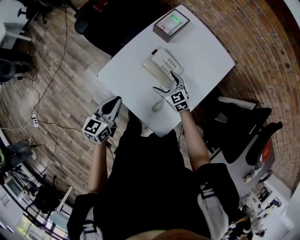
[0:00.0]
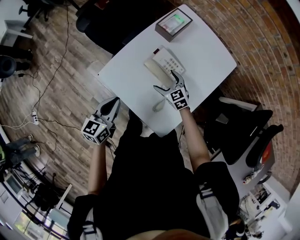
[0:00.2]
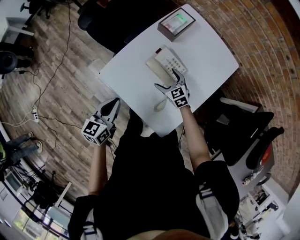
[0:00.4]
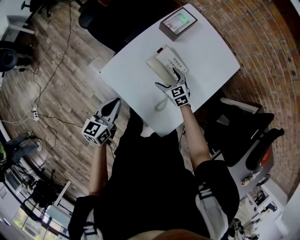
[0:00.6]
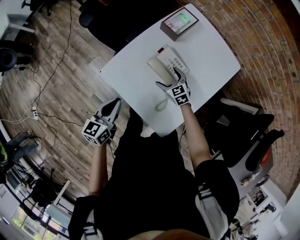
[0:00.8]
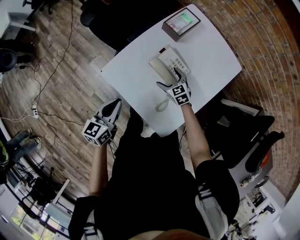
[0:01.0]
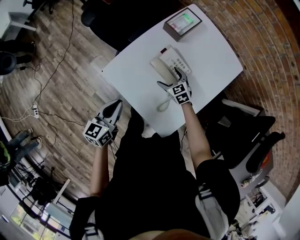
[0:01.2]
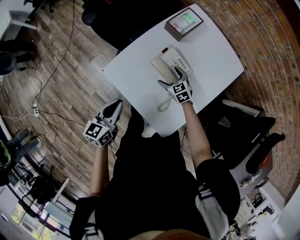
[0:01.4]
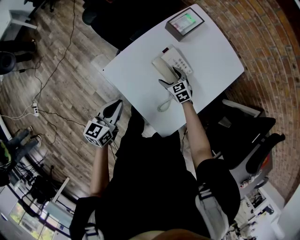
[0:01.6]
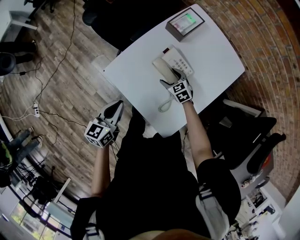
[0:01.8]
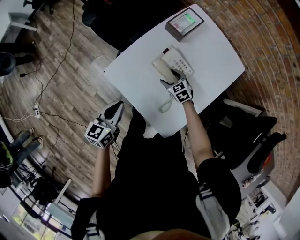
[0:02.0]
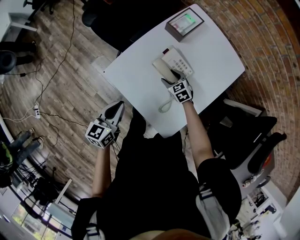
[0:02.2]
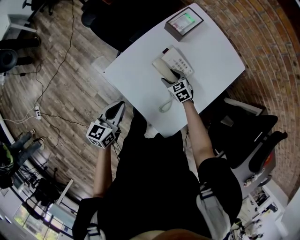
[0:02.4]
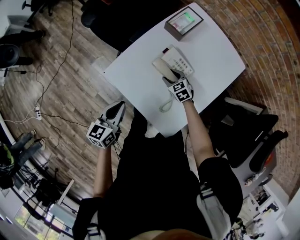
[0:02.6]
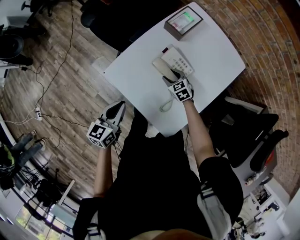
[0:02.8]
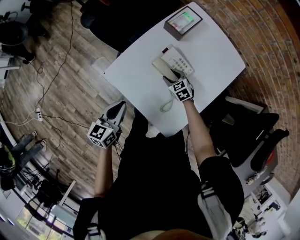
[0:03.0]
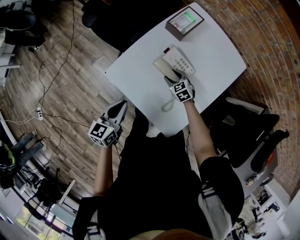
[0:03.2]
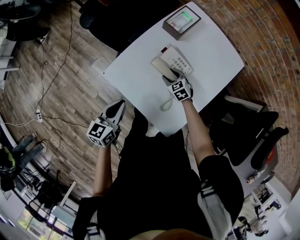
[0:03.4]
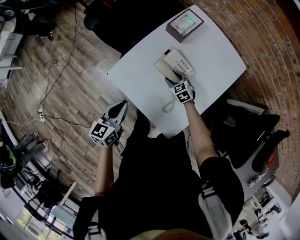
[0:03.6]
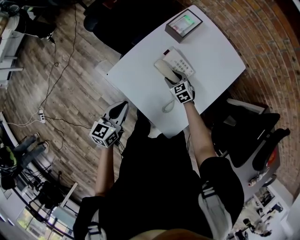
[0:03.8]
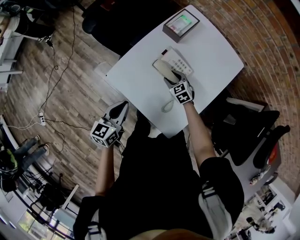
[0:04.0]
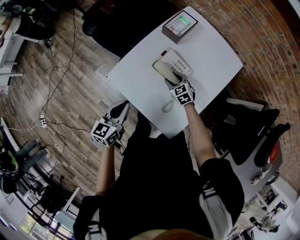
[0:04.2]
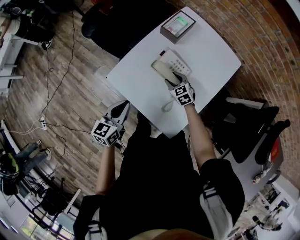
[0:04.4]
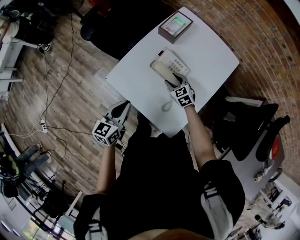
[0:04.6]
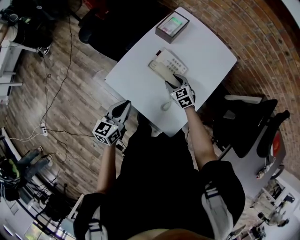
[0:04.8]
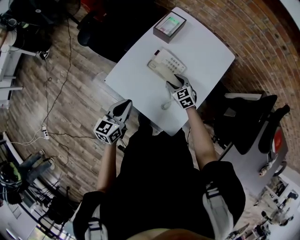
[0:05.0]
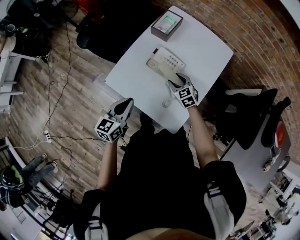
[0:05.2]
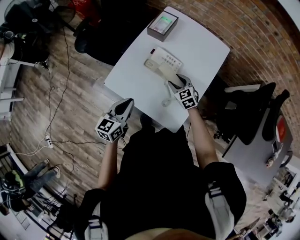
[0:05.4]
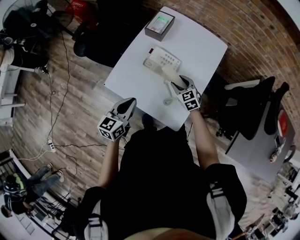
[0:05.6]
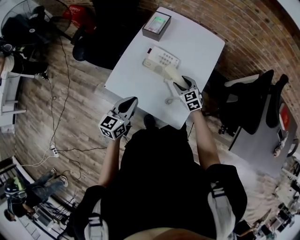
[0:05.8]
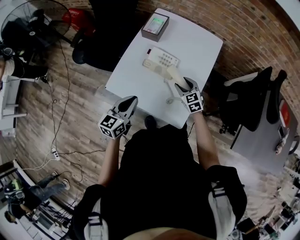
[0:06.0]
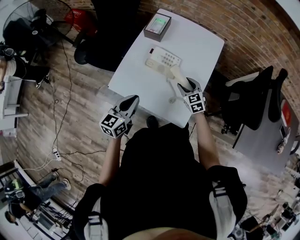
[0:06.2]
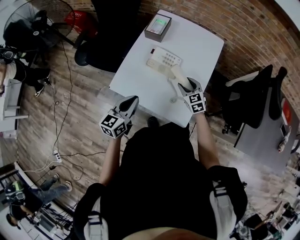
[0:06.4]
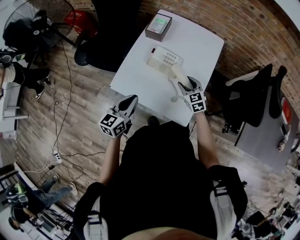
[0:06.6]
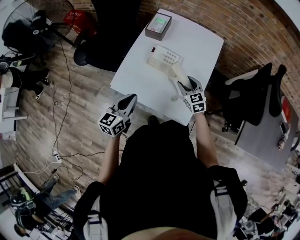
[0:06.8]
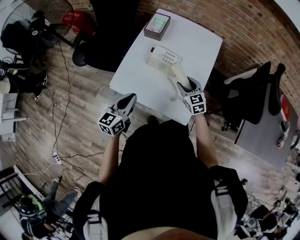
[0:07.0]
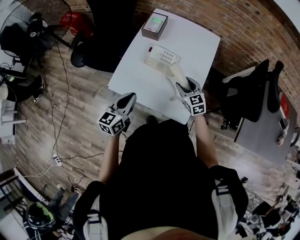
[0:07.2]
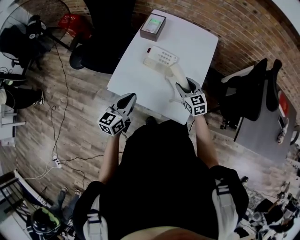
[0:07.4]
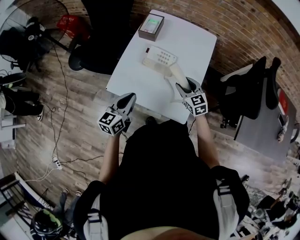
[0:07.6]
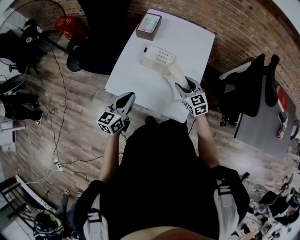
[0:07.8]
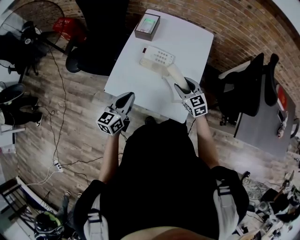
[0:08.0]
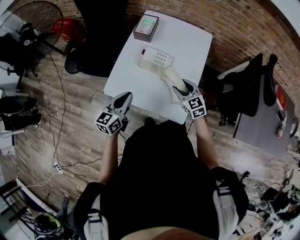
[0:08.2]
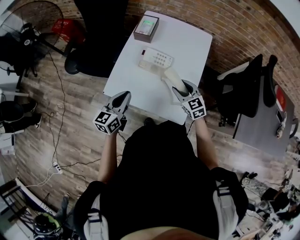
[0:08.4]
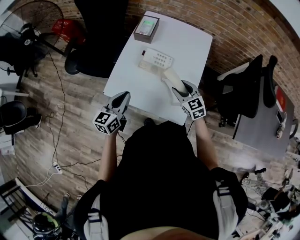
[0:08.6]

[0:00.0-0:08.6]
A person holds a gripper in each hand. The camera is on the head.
0:00.0 to 0:01.4: The right gripper travels downward by approximately 5 cm.
0:01.4 to 0:02.8: The right gripper closes its fingers.
0:02.8 to 0:04.4: There are only small adjustments of the grippers.
0:04.4 to 0:05.8: The right gripper moves backward, to the right and upward, approximately 15 cm; the left gripper changes place by roughly 5 cm.
0:05.8 to 0:07.2: The right gripper shifts about 5 cm backward.
0:07.2 to 0:08.6: The grippers make only small movements.

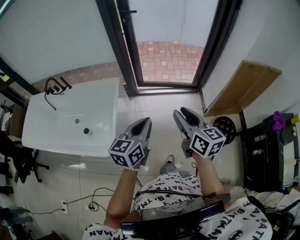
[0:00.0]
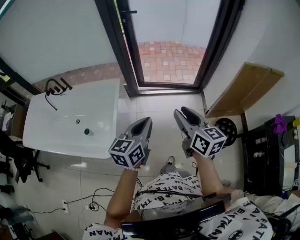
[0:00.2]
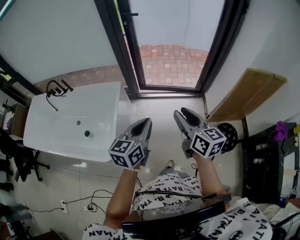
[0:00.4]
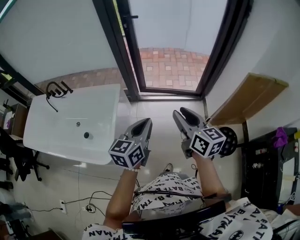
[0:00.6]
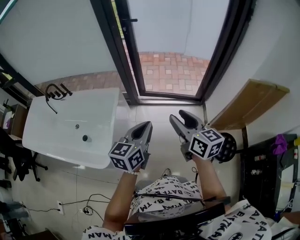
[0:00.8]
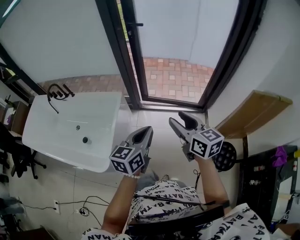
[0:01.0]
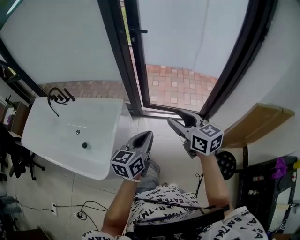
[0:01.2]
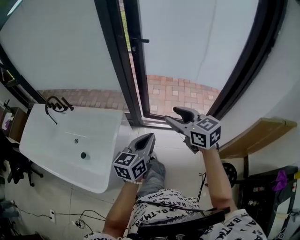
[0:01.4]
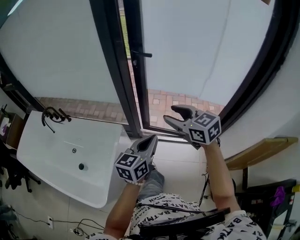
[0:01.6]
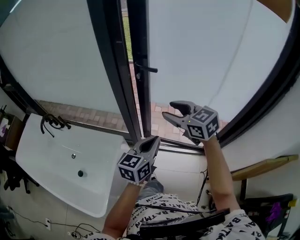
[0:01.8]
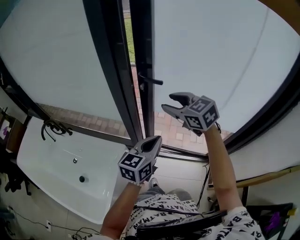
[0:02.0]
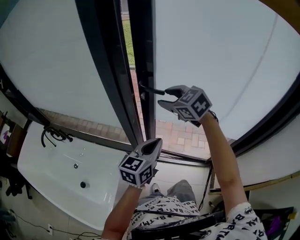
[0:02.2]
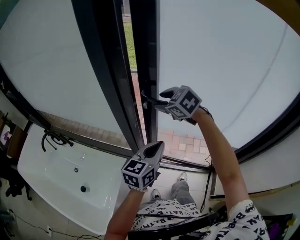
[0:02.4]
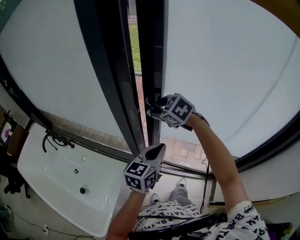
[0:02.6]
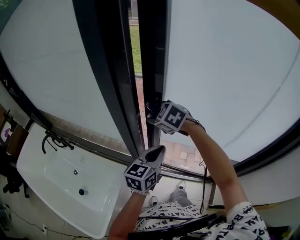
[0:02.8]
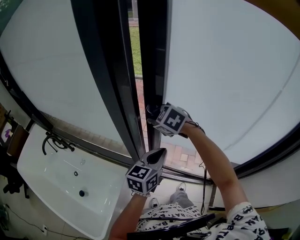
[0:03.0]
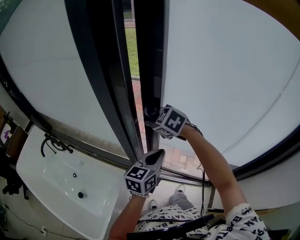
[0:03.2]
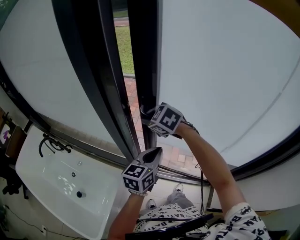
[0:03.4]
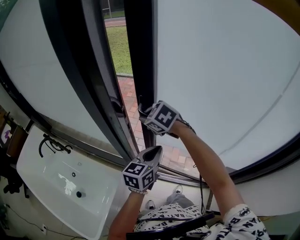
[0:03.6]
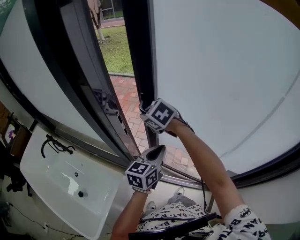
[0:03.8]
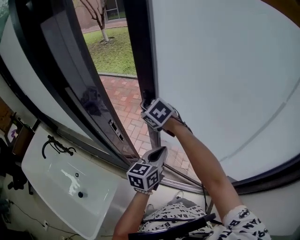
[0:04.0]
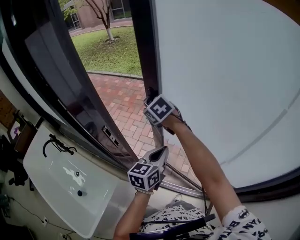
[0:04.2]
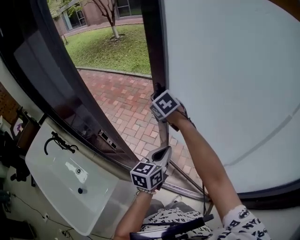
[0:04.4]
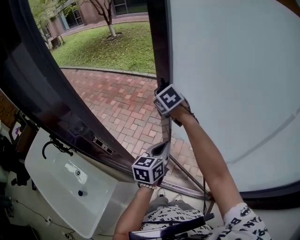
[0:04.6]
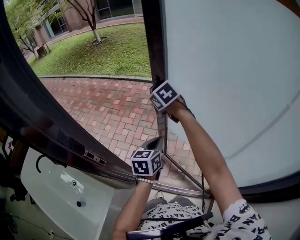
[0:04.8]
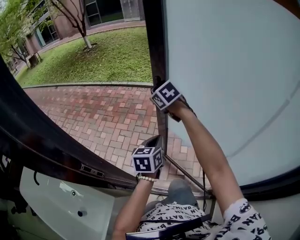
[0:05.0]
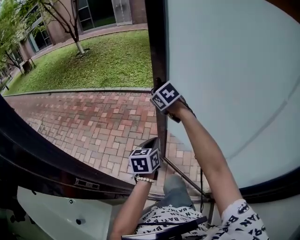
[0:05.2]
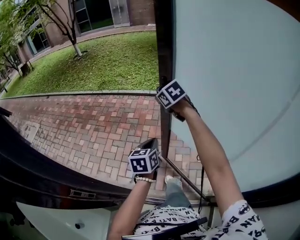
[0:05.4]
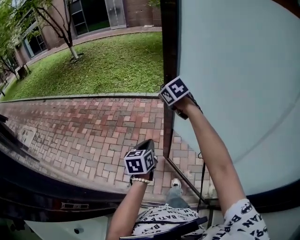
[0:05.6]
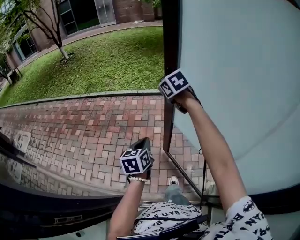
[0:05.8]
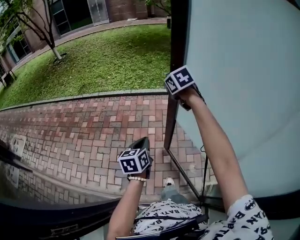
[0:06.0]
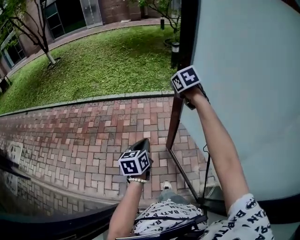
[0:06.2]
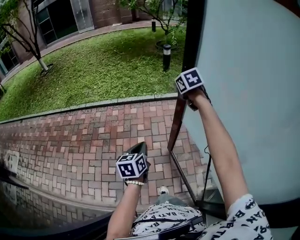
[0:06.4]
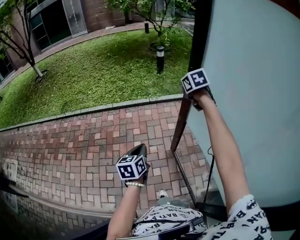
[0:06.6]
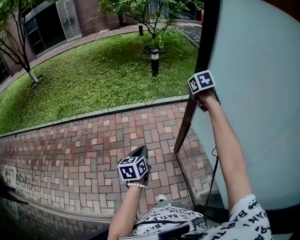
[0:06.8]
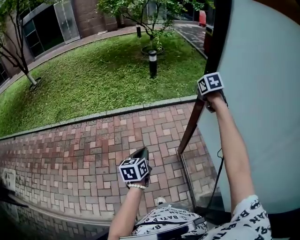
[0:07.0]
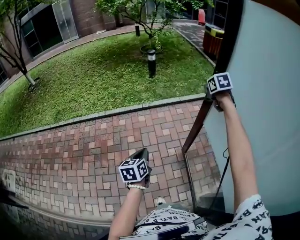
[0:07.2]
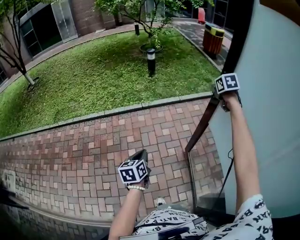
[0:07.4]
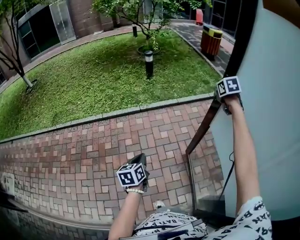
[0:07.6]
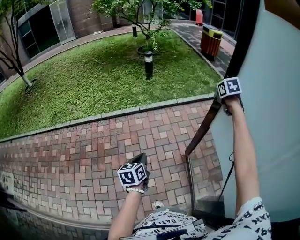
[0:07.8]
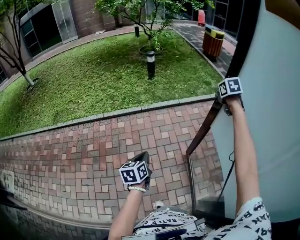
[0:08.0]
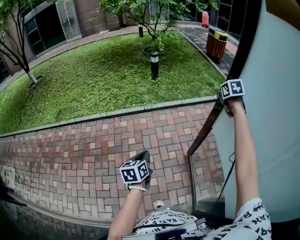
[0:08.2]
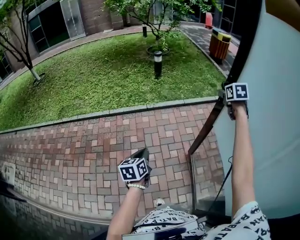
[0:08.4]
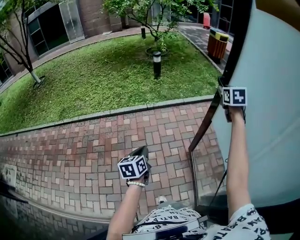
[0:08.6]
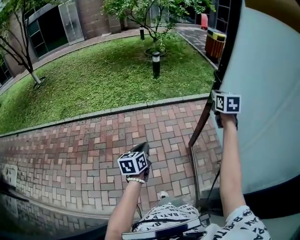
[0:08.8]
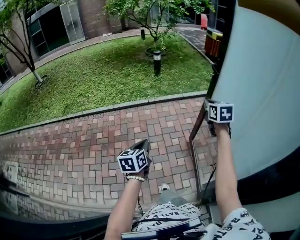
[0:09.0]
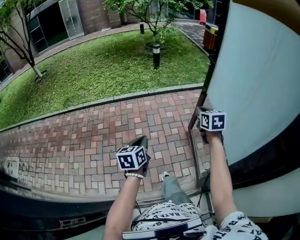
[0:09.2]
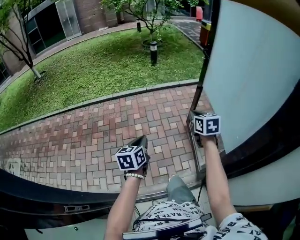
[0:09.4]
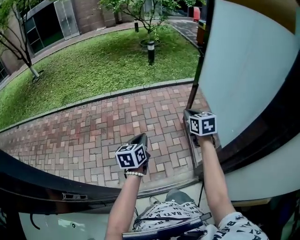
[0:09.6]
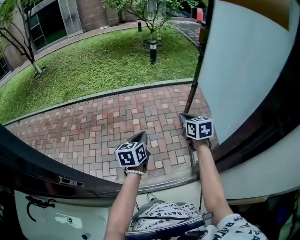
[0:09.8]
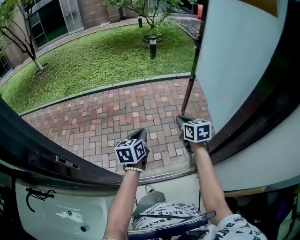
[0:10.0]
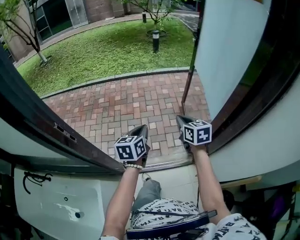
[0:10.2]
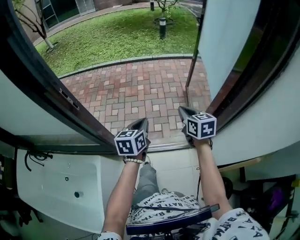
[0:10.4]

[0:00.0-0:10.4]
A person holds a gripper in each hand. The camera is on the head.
0:00.0 to 0:01.4: The two grippers go about 25 cm forward. The right gripper swivels some 30 degrees.
0:01.4 to 0:03.0: The grippers both shift forward by approximately 40 cm. The right gripper tips its fingers downward by some 30 degrees, and closes.
0:03.0 to 0:04.4: The left gripper goes approximately 20 cm to the right and forward, while the right gripper is displaced forward and to the right by approximately 20 cm.
0:04.4 to 0:06.0: The left gripper travels forward and to the right by roughly 30 cm; the right gripper travels to the right and forward by some 50 cm, and swivels about 30 degrees.
0:06.0 to 0:07.4: The left gripper ends up roughly 25 cm from where it was. The right gripper shifts by about 50 cm, and turns by about 40 degrees.
0:07.4 to 0:09.0: The right gripper heads backward, covering approximately 30 cm, and opens, then closes once more. Meanwhile the left gripper moves backward, approximately 15 cm.
0:09.0 to 0:10.4: The pair of grippers is taken backward, approximately 50 cm. The right gripper changes its angle by approximately 20 degrees.

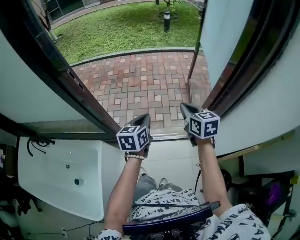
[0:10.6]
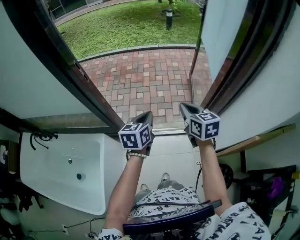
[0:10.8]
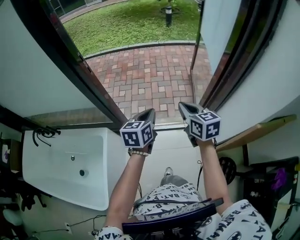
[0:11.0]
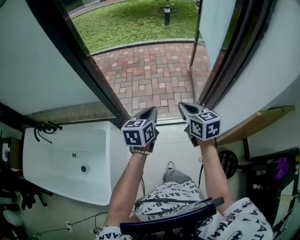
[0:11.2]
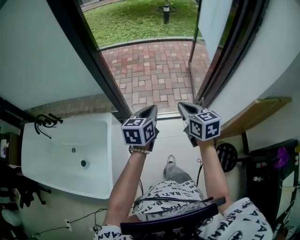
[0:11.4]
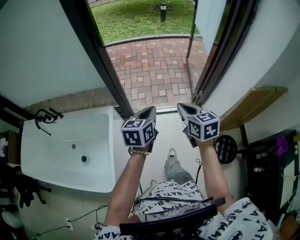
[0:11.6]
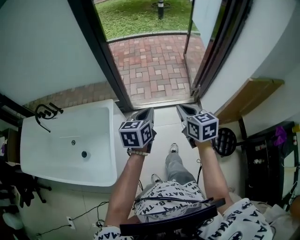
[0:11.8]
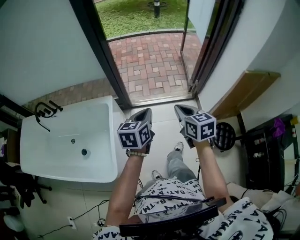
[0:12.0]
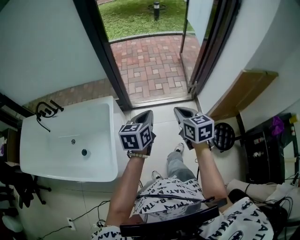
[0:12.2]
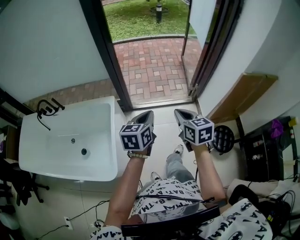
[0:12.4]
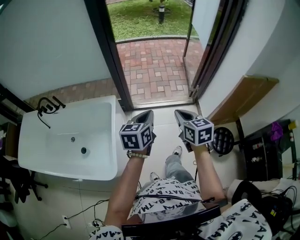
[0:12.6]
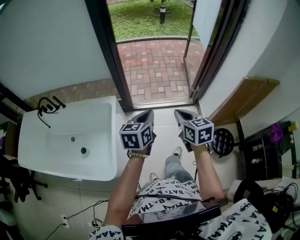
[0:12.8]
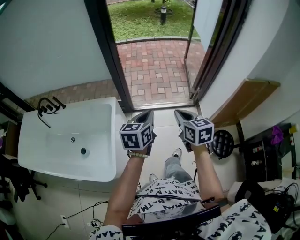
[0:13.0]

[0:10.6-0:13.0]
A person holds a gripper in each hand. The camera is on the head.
0:10.6 to 0:11.8: The grippers both shift backward by approximately 35 cm.
0:11.8 to 0:13.0: The grippers both shift backward by about 5 cm.

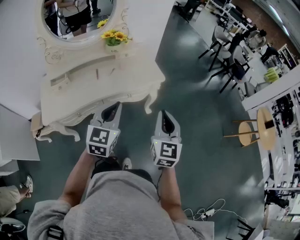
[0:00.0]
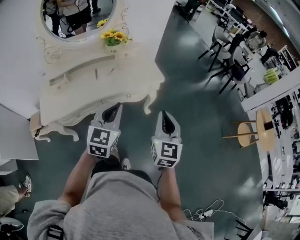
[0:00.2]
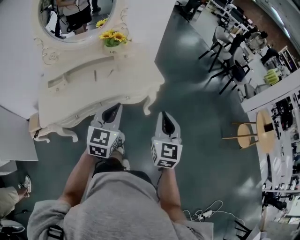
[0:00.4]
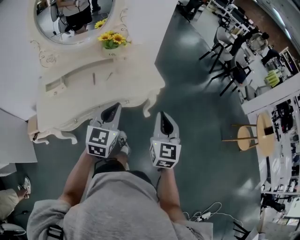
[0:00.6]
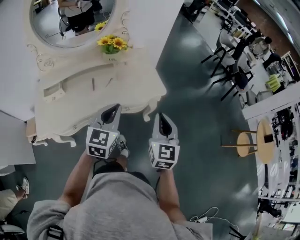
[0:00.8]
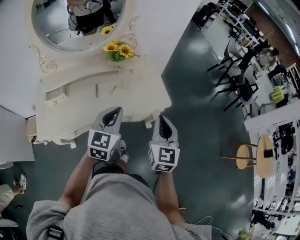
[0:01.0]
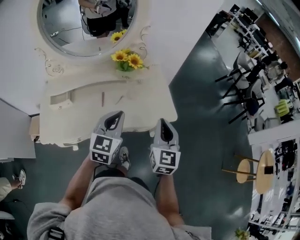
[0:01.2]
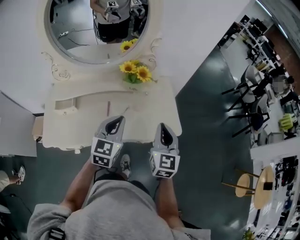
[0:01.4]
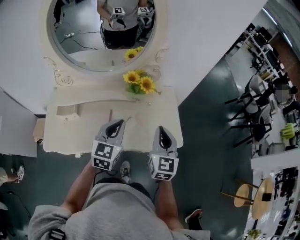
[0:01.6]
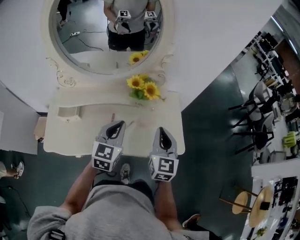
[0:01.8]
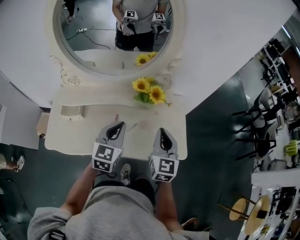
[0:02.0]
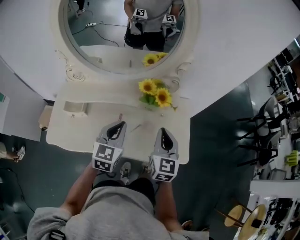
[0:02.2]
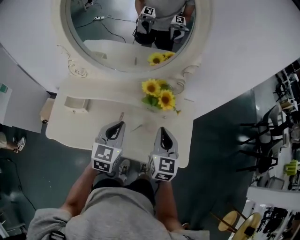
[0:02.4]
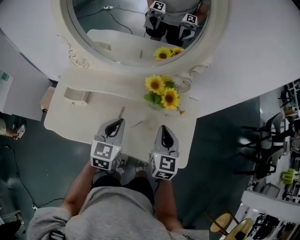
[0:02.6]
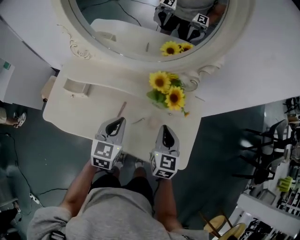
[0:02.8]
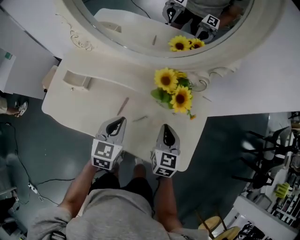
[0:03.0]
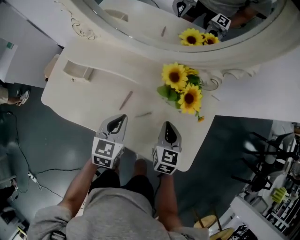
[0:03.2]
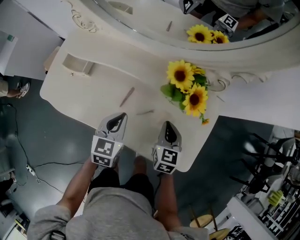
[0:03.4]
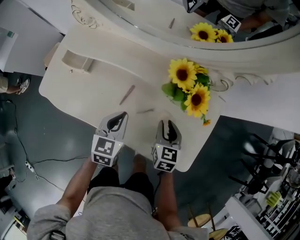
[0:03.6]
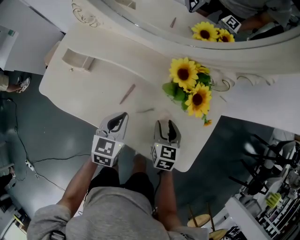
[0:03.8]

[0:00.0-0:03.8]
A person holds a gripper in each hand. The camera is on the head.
0:00.0 to 0:01.2: Both grippers travel together forward, approximately 25 cm.
0:01.2 to 0:02.6: The left gripper goes approximately 20 cm forward, to the left and downward, and turns by some 30 degrees. The right gripper travels forward and to the left by approximately 25 cm, and changes its angle by about 20 degrees.
0:02.6 to 0:03.8: The two grippers go some 15 cm downward. The right gripper turns by roughly 30 degrees, and opens.
